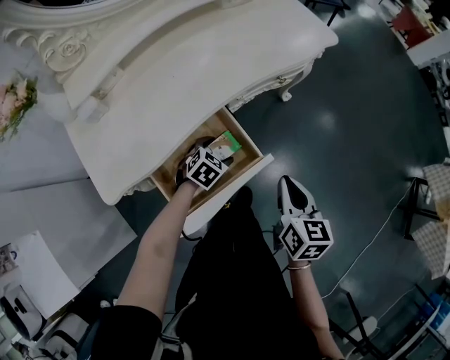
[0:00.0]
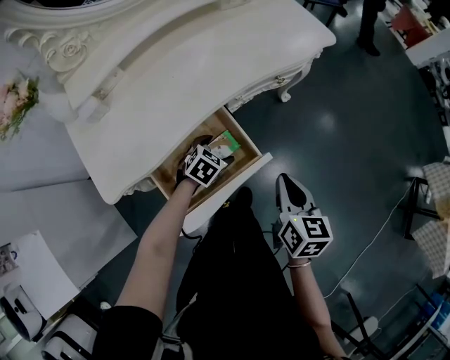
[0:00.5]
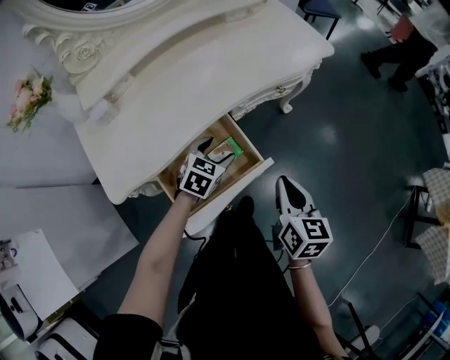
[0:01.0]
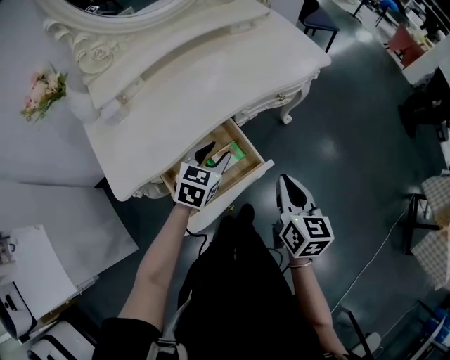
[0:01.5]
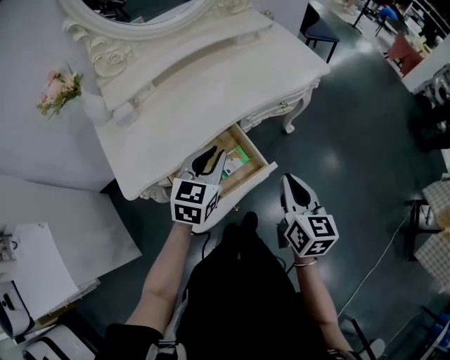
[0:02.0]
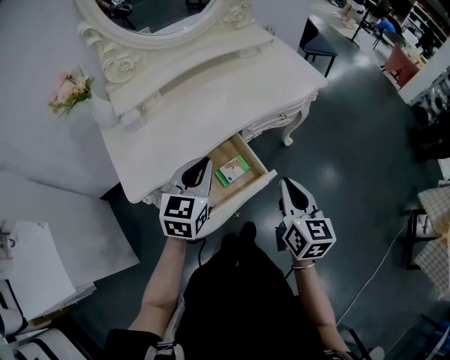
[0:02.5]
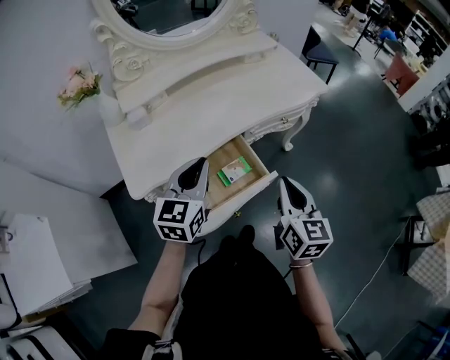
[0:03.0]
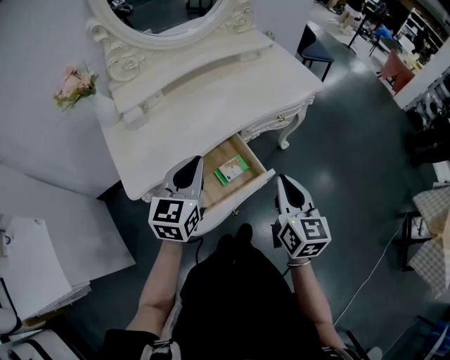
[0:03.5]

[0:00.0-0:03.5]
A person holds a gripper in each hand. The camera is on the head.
0:00.0 to 0:02.0: The right gripper travels upward by roughly 10 cm. The left gripper shifts approximately 25 cm upward, points its fingers some 30 degrees further upward, and closes its fingers.
0:02.0 to 0:03.5: The right gripper moves roughly 5 cm. Meanwhile the left gripper moves upward and to the left, some 10 cm.

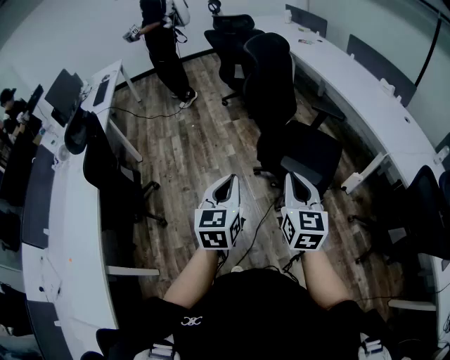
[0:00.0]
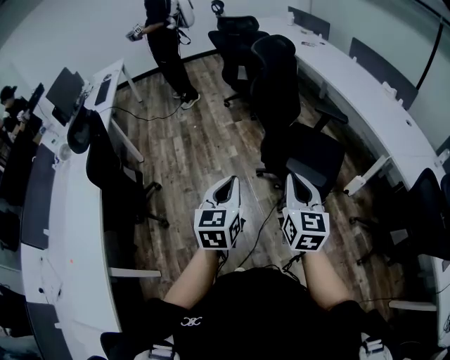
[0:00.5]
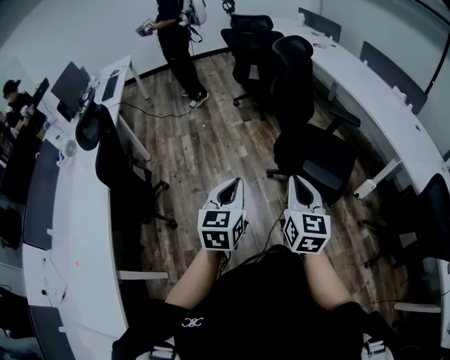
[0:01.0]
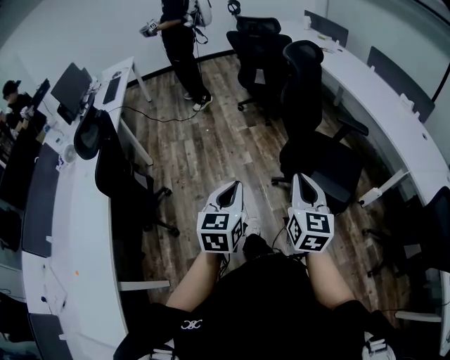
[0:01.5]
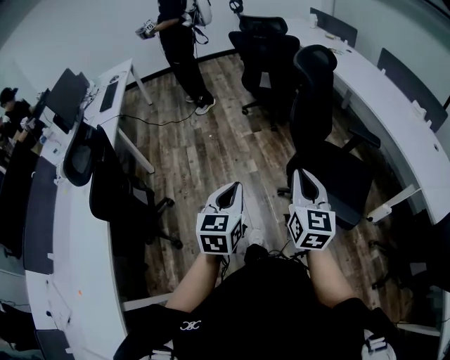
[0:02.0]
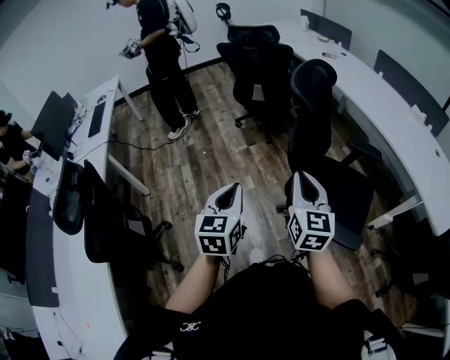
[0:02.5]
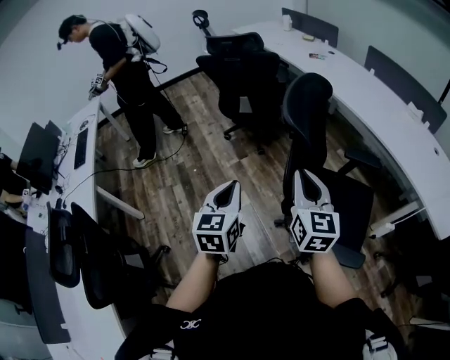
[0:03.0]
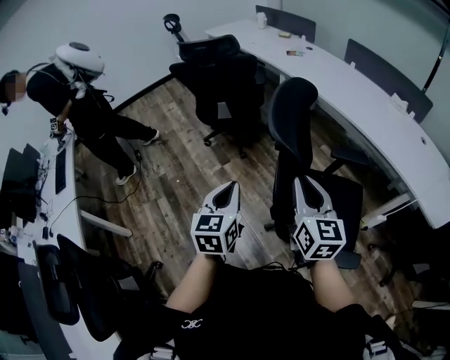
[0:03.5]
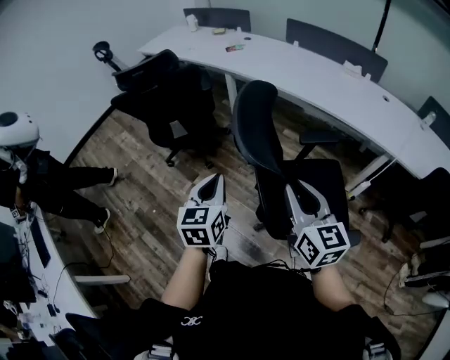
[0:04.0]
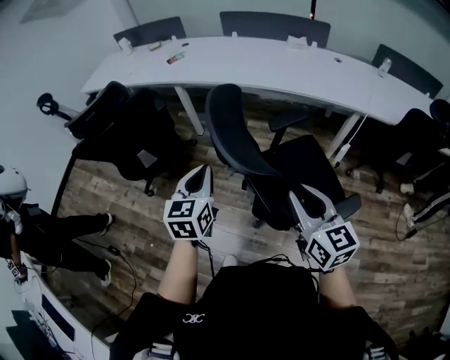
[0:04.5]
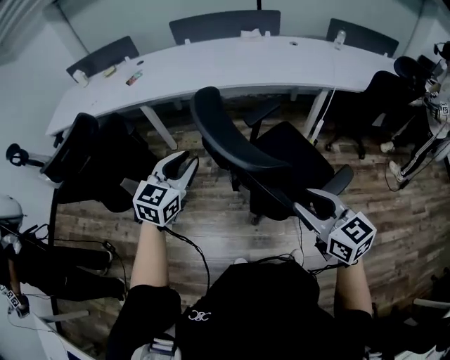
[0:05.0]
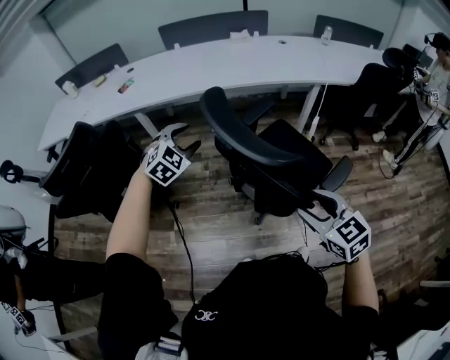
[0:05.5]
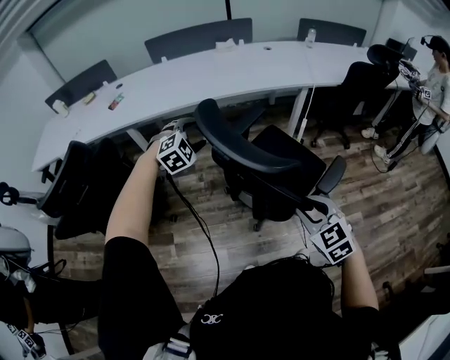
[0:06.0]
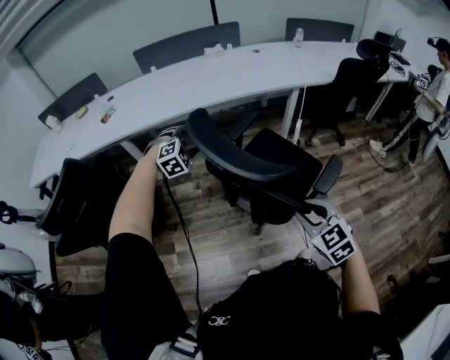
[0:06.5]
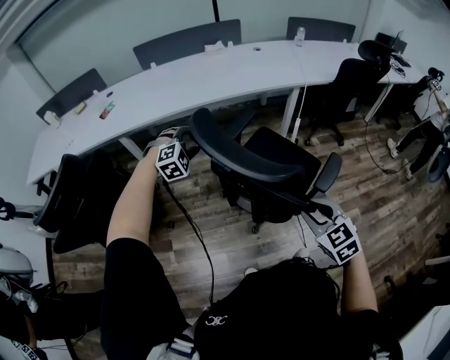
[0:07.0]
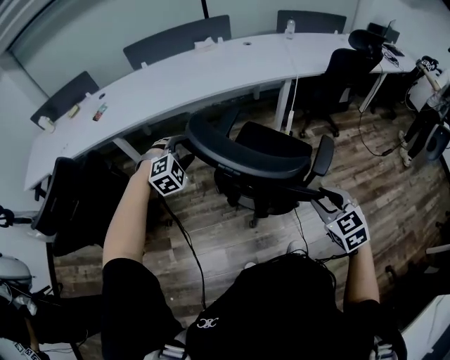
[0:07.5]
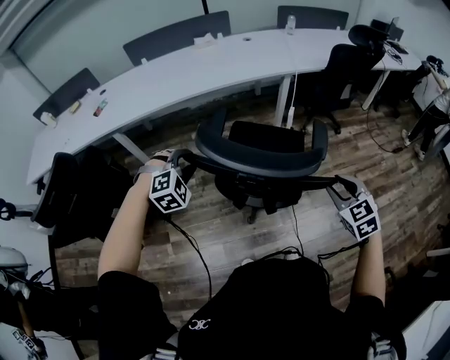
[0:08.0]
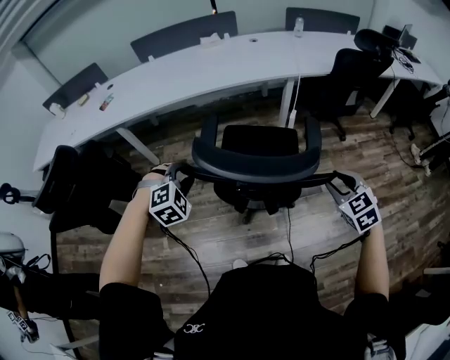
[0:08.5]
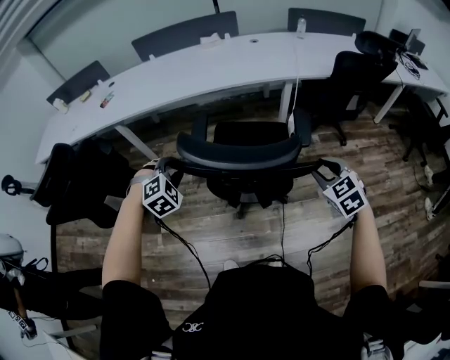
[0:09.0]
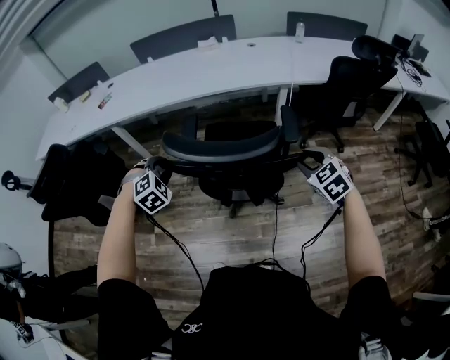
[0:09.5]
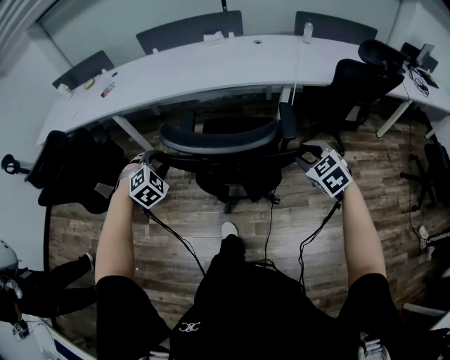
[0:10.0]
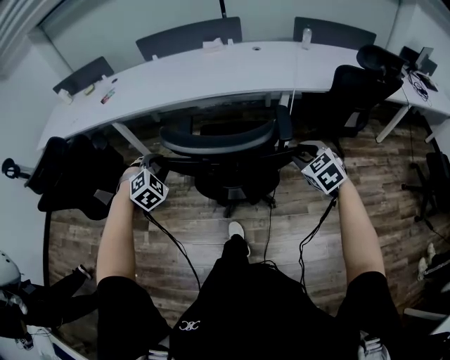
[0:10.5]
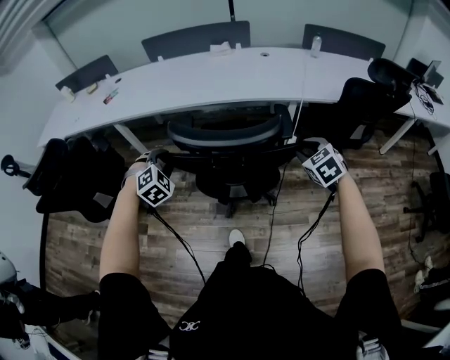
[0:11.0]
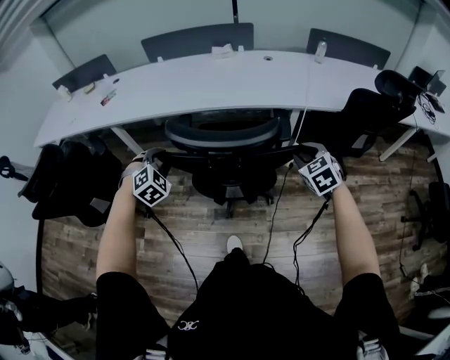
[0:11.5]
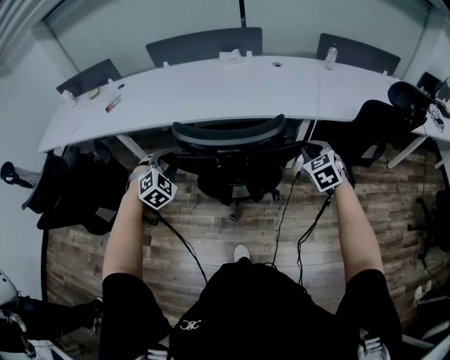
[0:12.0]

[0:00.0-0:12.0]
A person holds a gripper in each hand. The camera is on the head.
0:00.0 to 0:02.0: The two grippers go approximately 25 cm forward and to the left.
0:02.0 to 0:04.0: The right gripper moves approximately 35 cm, and turns by some 20 degrees. The left gripper shifts by approximately 50 cm, and swivels about 30 degrees.
0:04.0 to 0:06.0: The right gripper goes about 10 cm downward, rotates roughly 50 degrees, and opens and closes again, while the left gripper changes place by about 30 cm, twists some 80 degrees clockwise, seen from behind, and opens up.
0:06.0 to 0:08.0: The right gripper is displaced to the right by some 15 cm, while the left gripper goes approximately 10 cm backward and to the right, and closes up.
0:08.0 to 0:10.0: The right gripper travels forward and to the right by approximately 25 cm, and changes its angle by roughly 20 degrees, while the left gripper goes approximately 10 cm to the right, and swivels approximately 30 degrees.
0:10.0 to 0:12.0: Both grippers move forward, approximately 25 cm. The right gripper closes up.

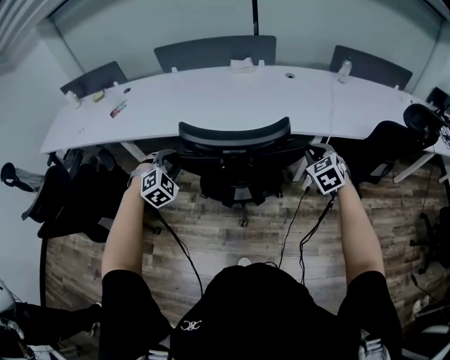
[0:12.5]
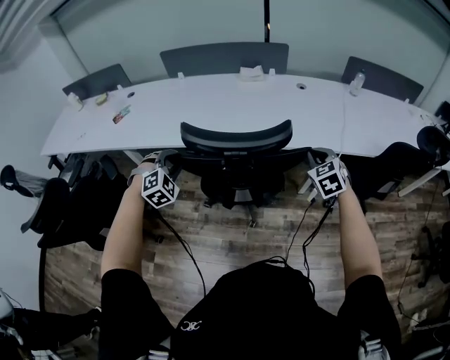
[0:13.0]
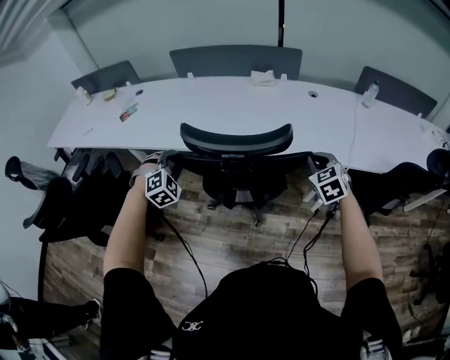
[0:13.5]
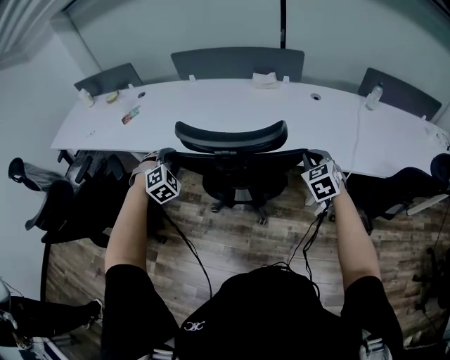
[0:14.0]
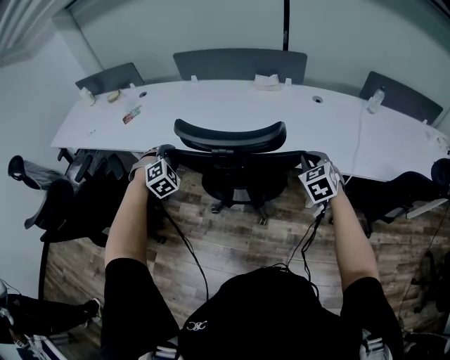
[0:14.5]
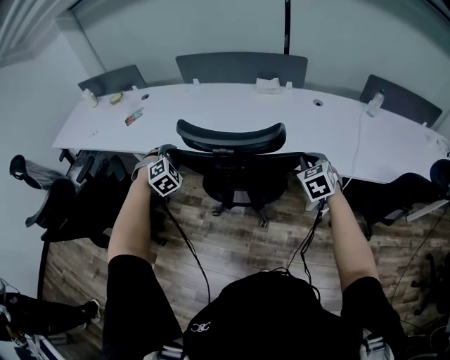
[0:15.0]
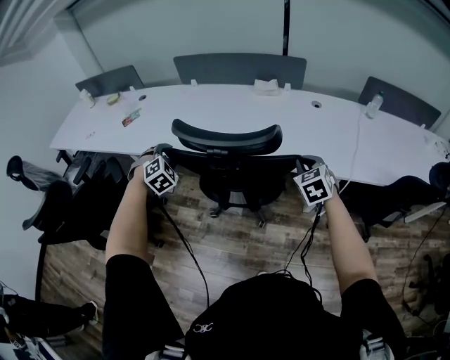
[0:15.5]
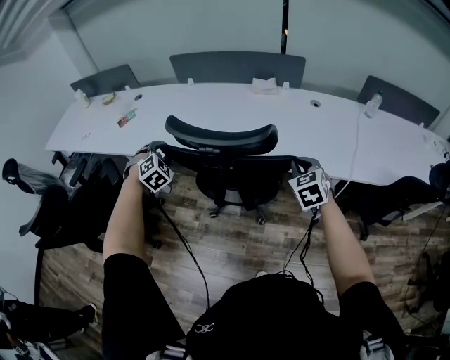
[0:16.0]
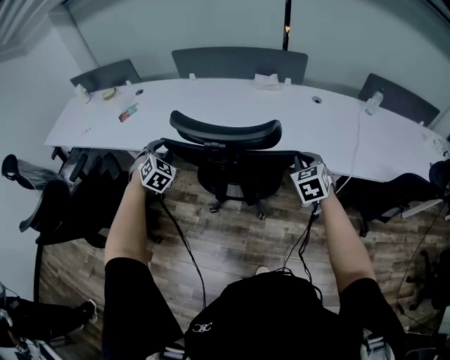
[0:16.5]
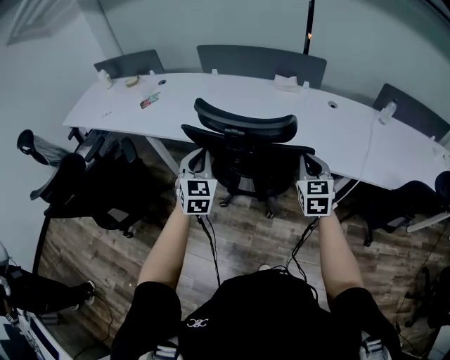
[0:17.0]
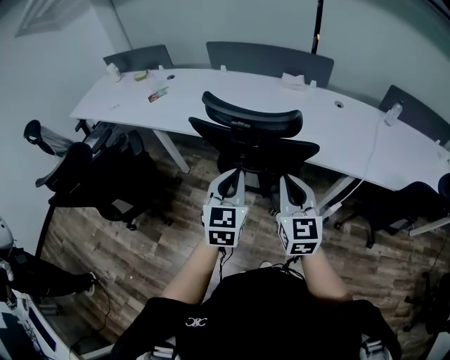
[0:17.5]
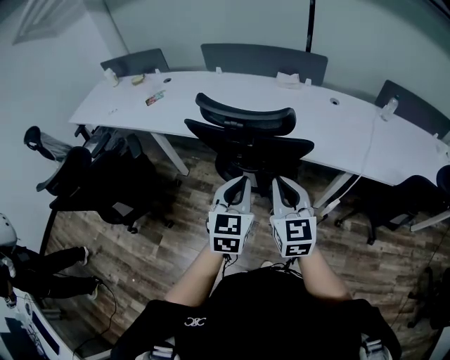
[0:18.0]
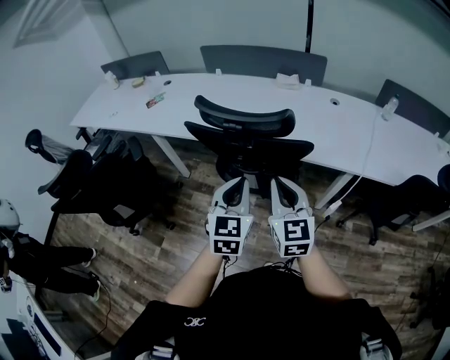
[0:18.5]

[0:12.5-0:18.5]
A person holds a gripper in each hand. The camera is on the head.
0:12.5 to 0:14.5: Both grippers move forward, roughly 15 cm.
0:14.5 to 0:16.5: The left gripper moves roughly 5 cm, and turns by approximately 20 degrees.
0:16.5 to 0:18.5: The left gripper goes approximately 35 cm backward and to the right, rolls counterclockwise, seen from behind, by some 40 degrees, and closes up. Meanwhile the right gripper goes approximately 25 cm backward, to the left and upward, and turns by some 40 degrees.

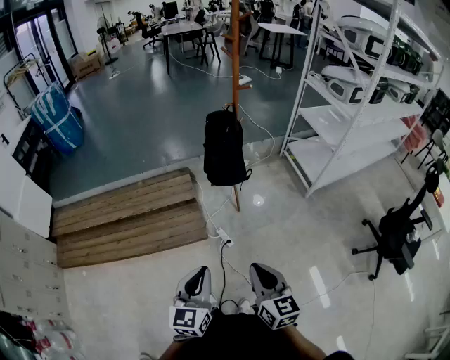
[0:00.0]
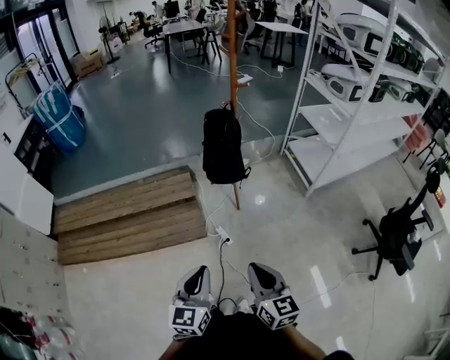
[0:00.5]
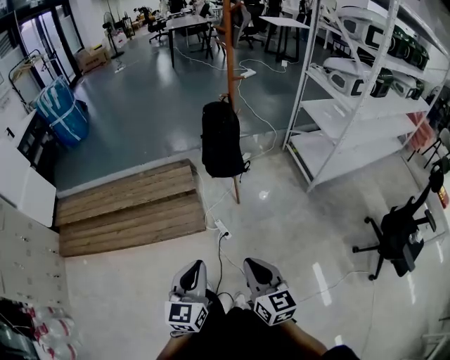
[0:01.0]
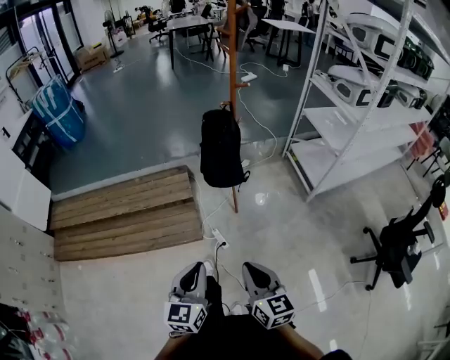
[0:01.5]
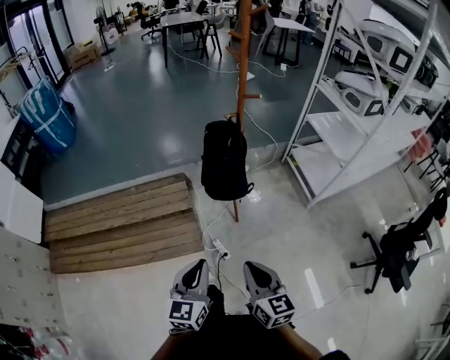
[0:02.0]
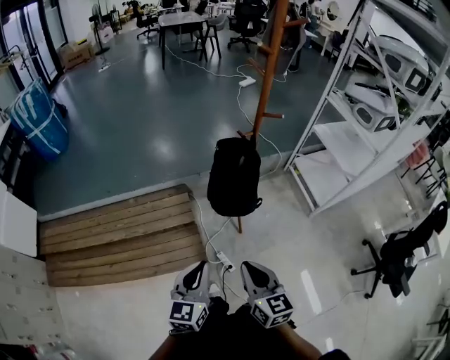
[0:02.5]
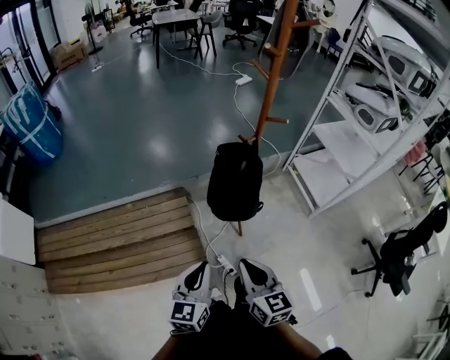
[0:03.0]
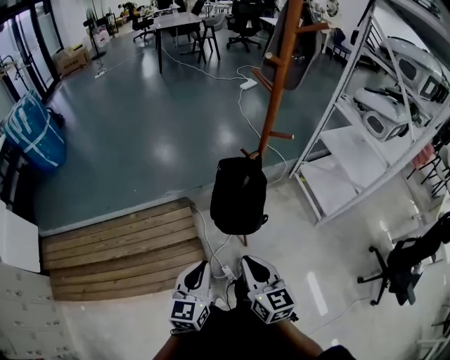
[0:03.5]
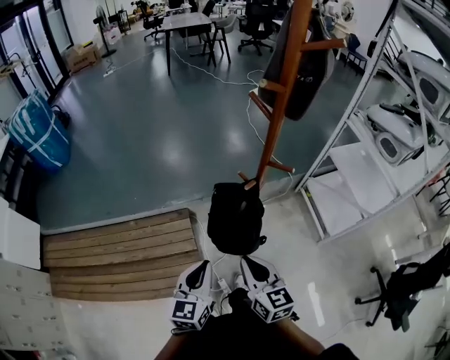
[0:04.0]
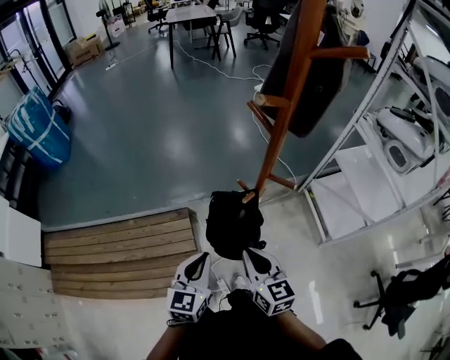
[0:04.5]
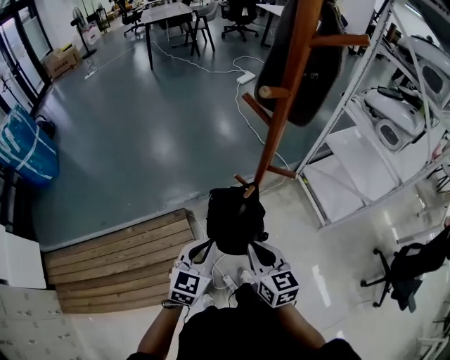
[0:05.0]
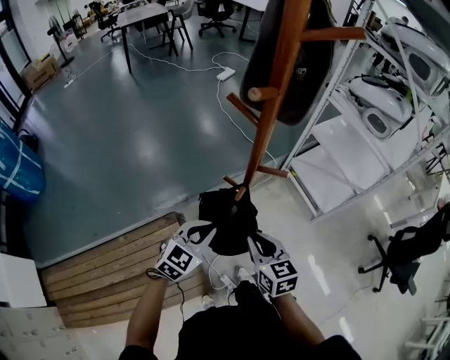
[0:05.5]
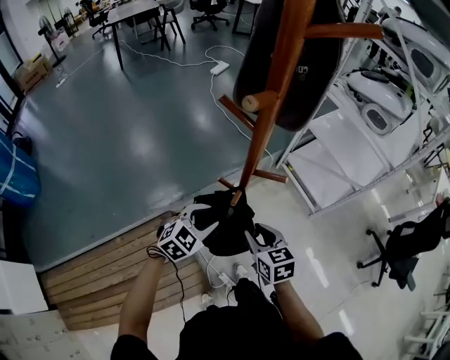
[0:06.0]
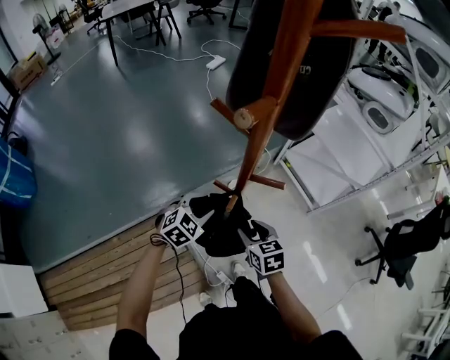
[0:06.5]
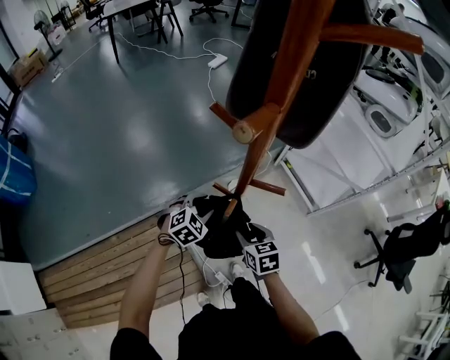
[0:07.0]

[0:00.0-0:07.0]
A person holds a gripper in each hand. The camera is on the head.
0:00.0 to 0:02.0: The two grippers go approximately 20 cm forward.
0:02.0 to 0:03.5: The two grippers go about 25 cm forward.
0:03.5 to 0:05.0: Both grippers travel together forward, approximately 20 cm. The left gripper changes its angle by about 20 degrees.
0:05.0 to 0:07.0: The left gripper is displaced forward and downward by some 25 cm, changes its angle by approximately 40 degrees, and opens up; the right gripper is displaced downward and forward by about 20 cm, rotates approximately 20 degrees, and opens up.
